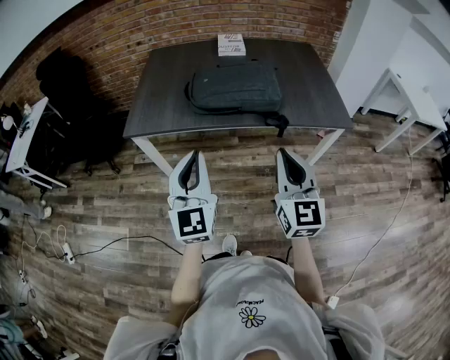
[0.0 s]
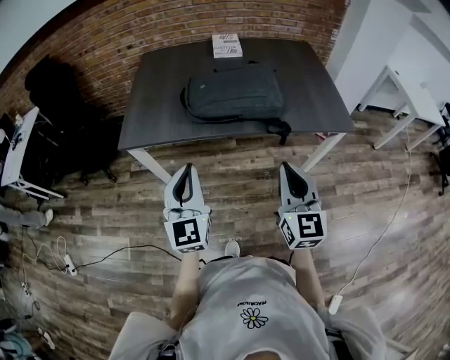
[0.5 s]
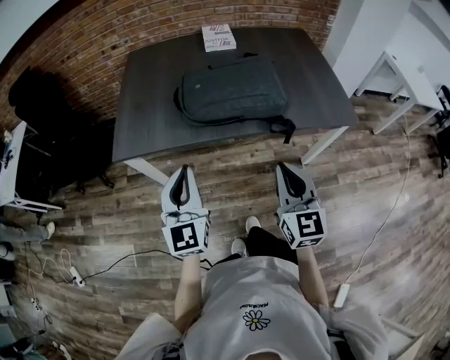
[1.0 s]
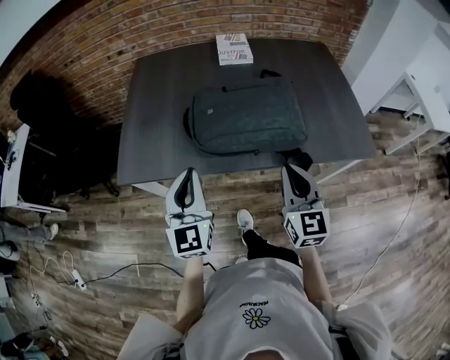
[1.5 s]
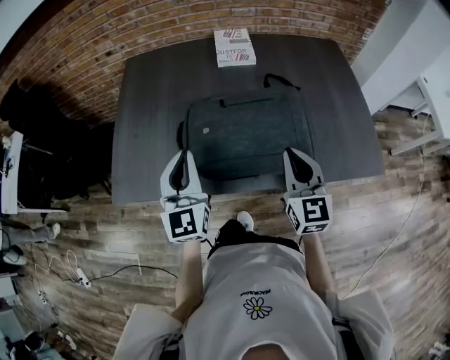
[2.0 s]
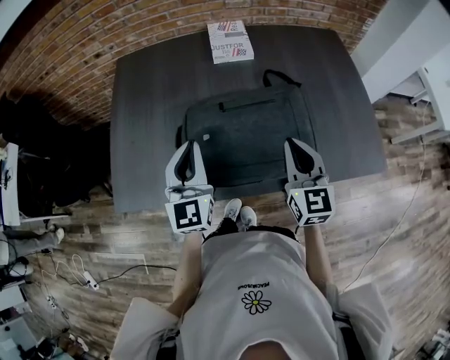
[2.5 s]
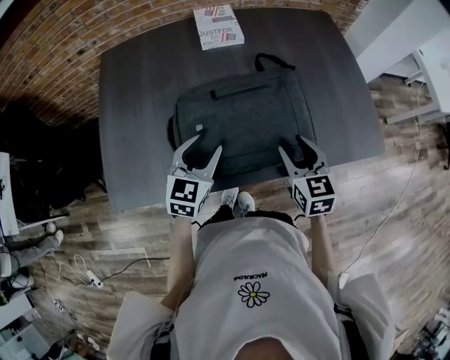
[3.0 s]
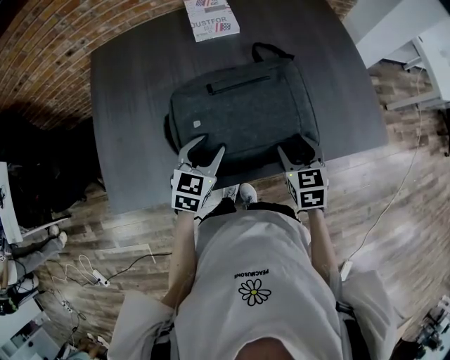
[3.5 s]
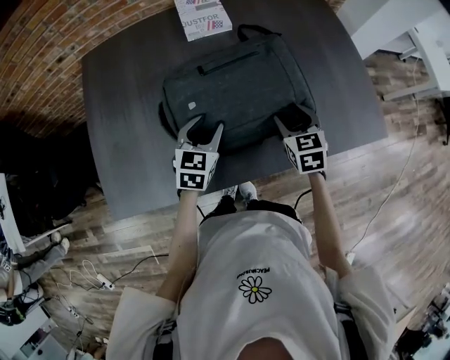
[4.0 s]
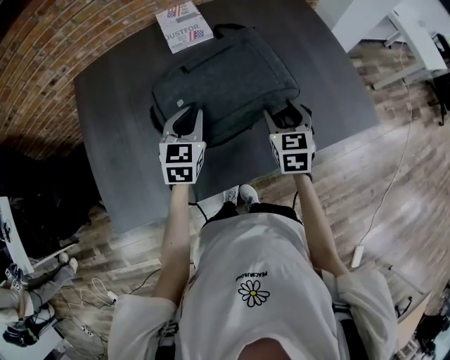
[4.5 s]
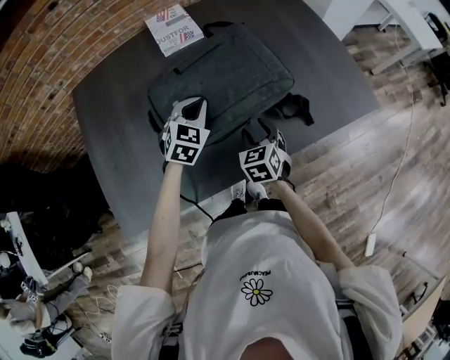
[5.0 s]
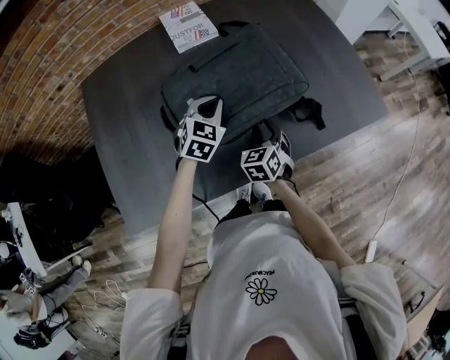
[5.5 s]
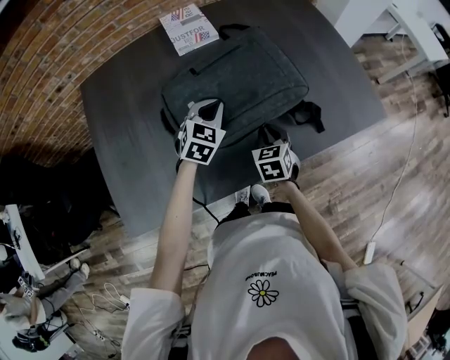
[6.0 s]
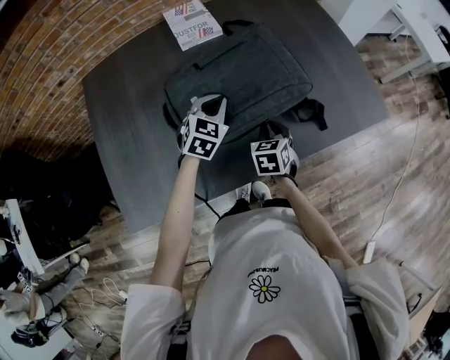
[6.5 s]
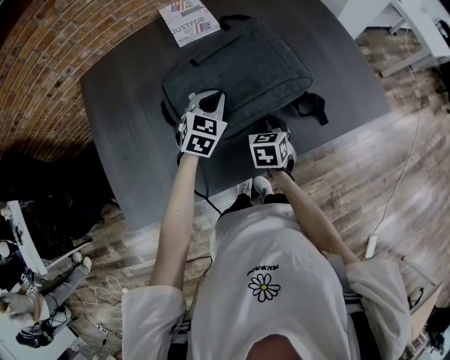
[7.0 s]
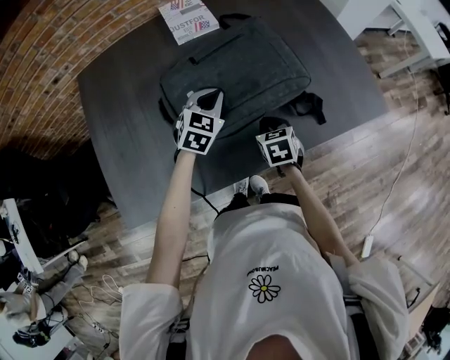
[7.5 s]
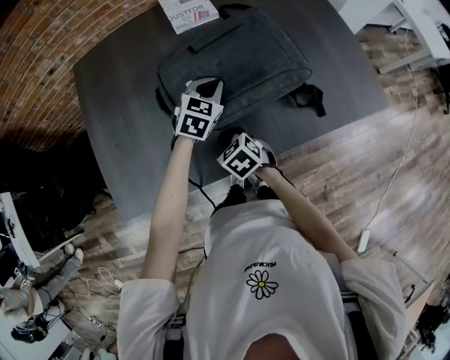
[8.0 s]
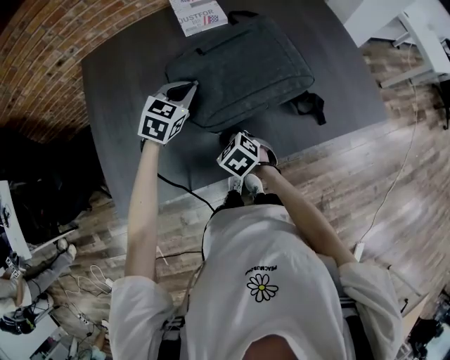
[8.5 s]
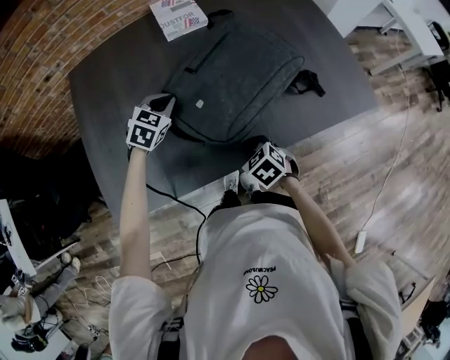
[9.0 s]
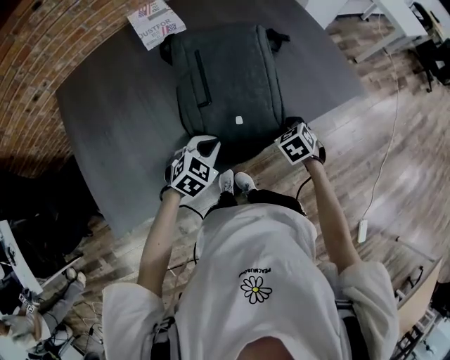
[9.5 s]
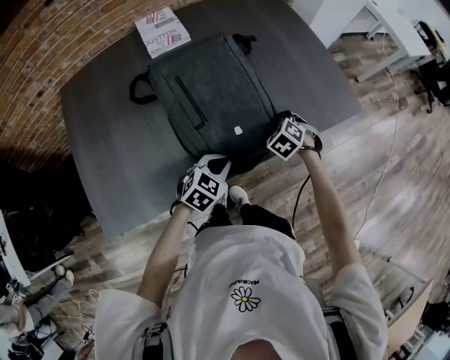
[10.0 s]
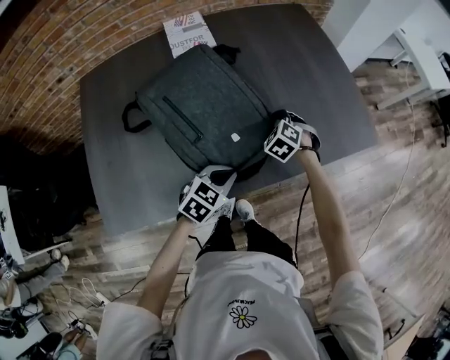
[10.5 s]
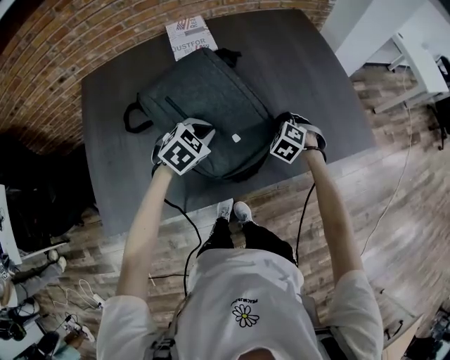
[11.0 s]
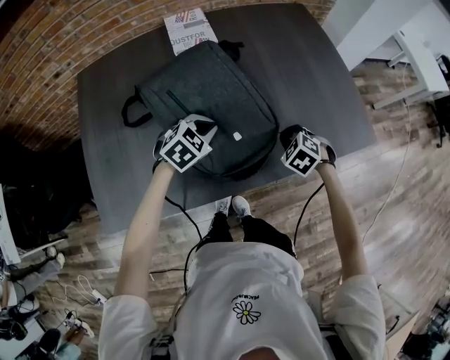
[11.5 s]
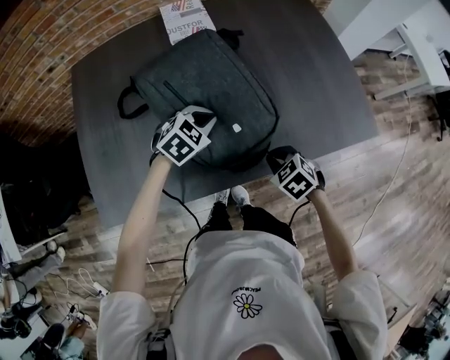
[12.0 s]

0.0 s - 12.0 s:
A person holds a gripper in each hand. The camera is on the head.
0.0 s - 2.0 s: The two grippers go approximately 35 cm forward.
2.0 s - 4.0 s: Both grippers move downward and forward, about 20 cm. The left gripper tilts its fingers about 30 degrees downward, and opens its fingers. Meanwhile the right gripper rotates roughly 30 degrees, and opens up.
4.0 s - 6.0 s: The left gripper goes roughly 5 cm forward, changes its angle by some 20 degrees, and closes. Meanwhile the right gripper moves downward and backward, some 10 cm, and closes.
6.0 s - 8.0 s: The right gripper is displaced to the left and backward by approximately 15 cm, and rotates some 30 degrees.
8.0 s - 10.0 s: The right gripper moves approximately 30 cm, and changes its angle by approximately 30 degrees. The left gripper ends up approximately 20 cm from where it was, and swivels roughly 20 degrees.
10.0 s - 12.0 s: The right gripper ends up some 10 cm from where it was, and swivels roughly 20 degrees. The left gripper ends up approximately 15 cm from where it was.

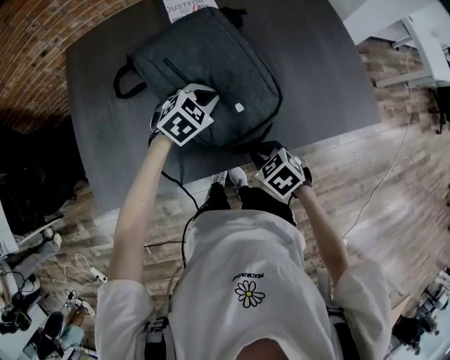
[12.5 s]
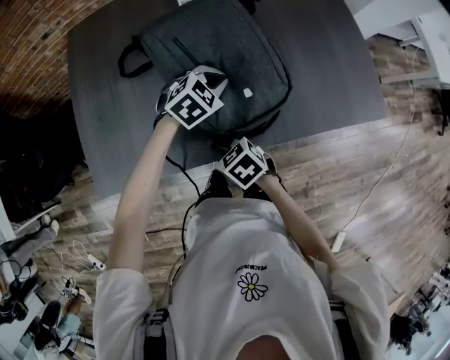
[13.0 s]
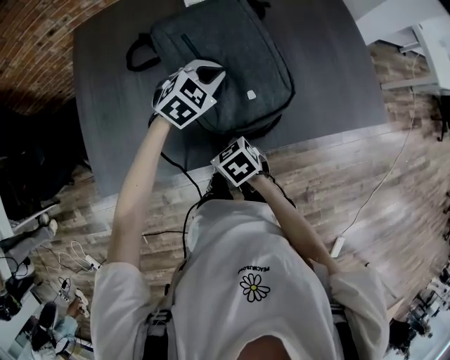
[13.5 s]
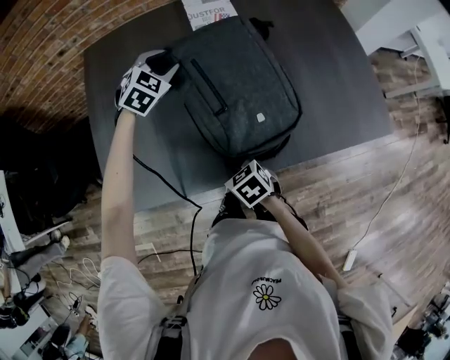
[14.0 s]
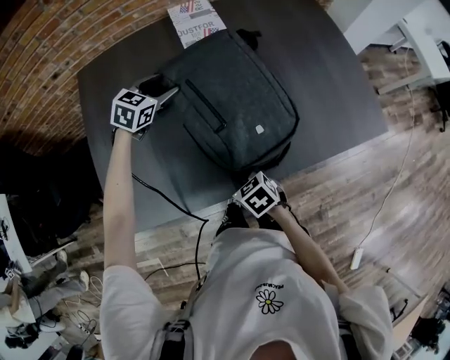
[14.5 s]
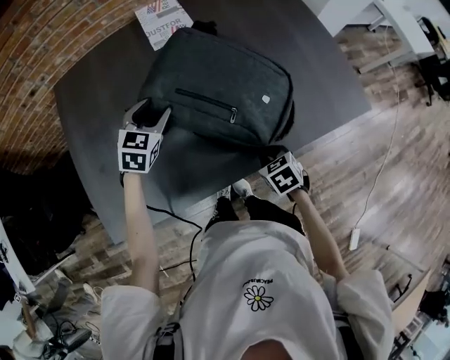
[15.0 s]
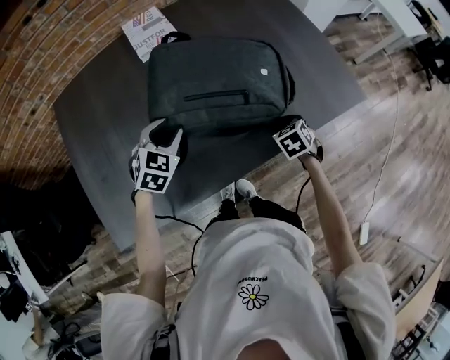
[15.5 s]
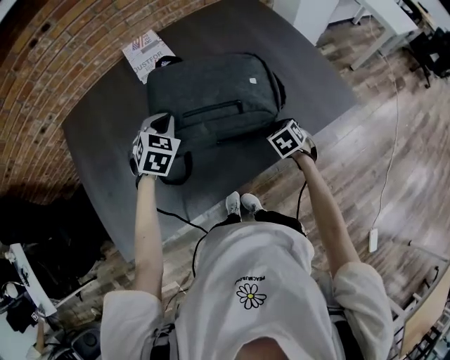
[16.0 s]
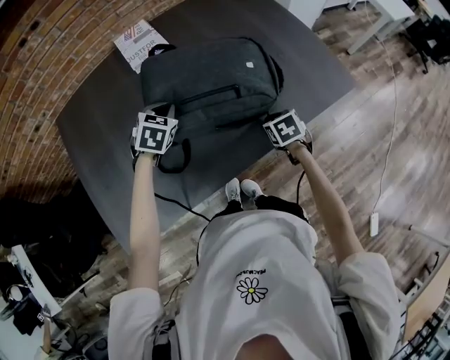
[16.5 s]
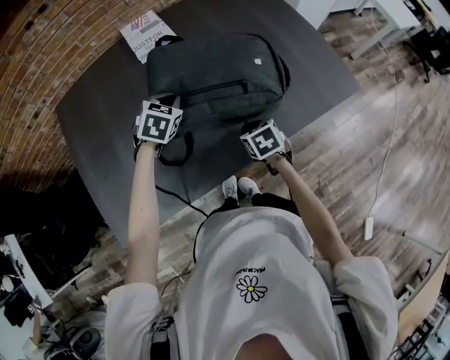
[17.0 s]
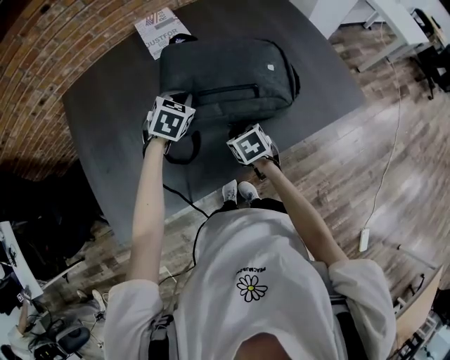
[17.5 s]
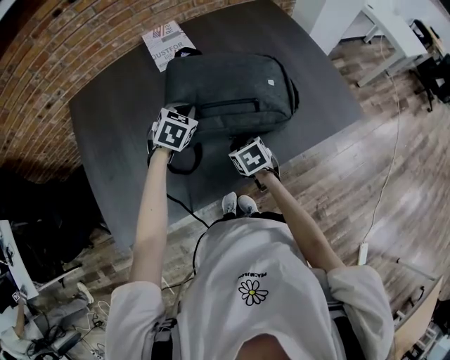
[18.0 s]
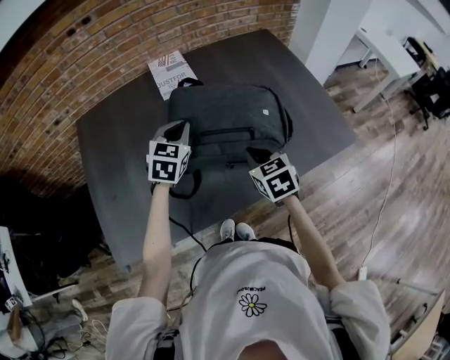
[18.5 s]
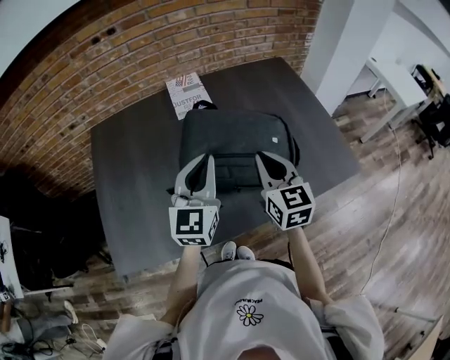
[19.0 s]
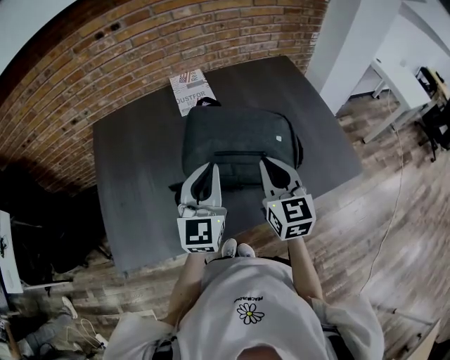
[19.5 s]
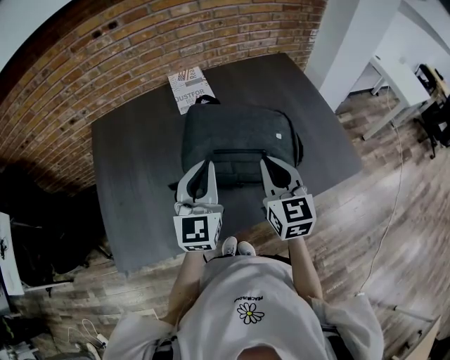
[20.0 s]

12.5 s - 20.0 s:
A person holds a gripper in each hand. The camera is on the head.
12.5 s - 14.5 s: The left gripper moves forward and to the left, roughly 25 cm, and opens its fingers; the right gripper travels to the left by some 10 cm.
14.5 s - 16.5 s: The right gripper ends up about 25 cm from where it was, and turns by about 30 degrees; the left gripper shifts by approximately 15 cm, and closes up.
16.5 s - 18.0 s: The right gripper heads to the left, covering approximately 15 cm.
18.0 s - 20.0 s: The right gripper travels upward by about 25 cm, and angles its fingers upward, by some 40 degrees. Meanwhile the left gripper moves upward and backward, about 20 cm, and points its fingers about 50 degrees further upward.

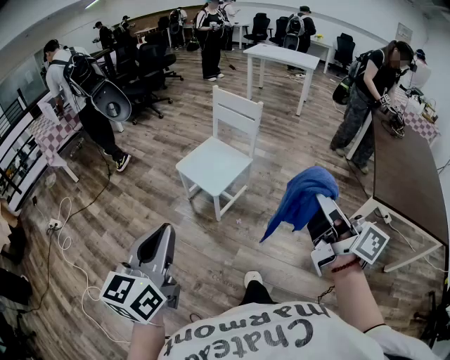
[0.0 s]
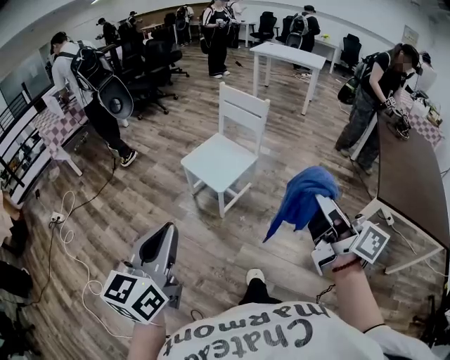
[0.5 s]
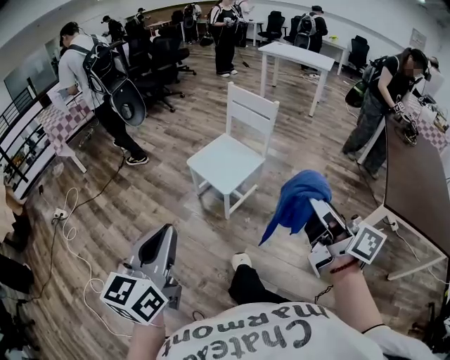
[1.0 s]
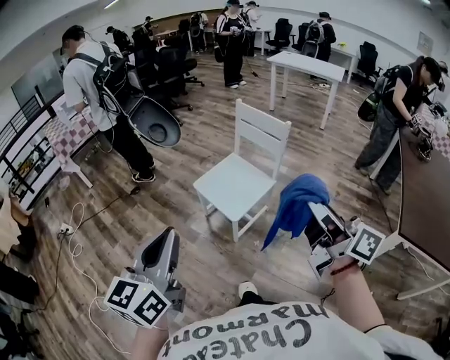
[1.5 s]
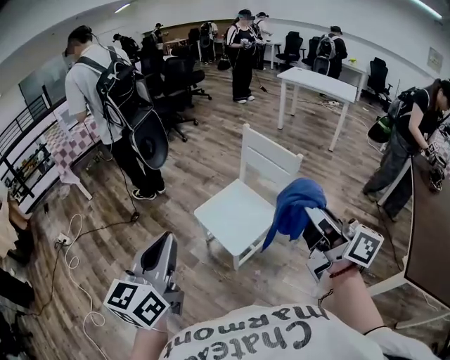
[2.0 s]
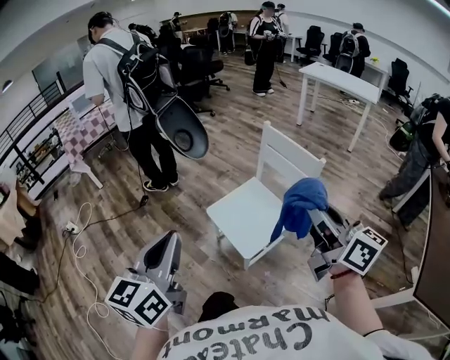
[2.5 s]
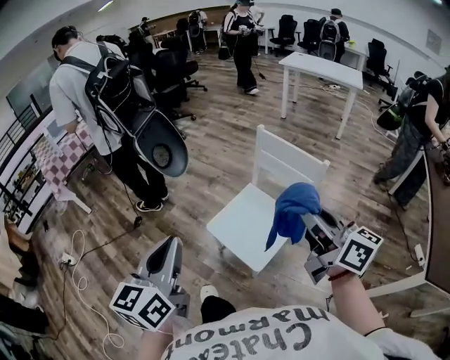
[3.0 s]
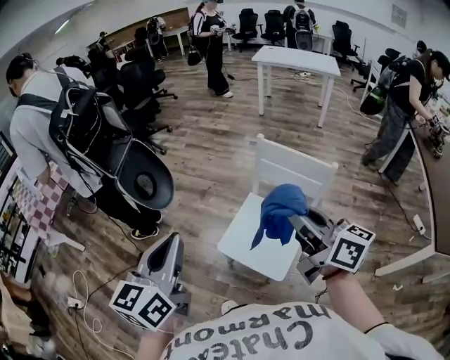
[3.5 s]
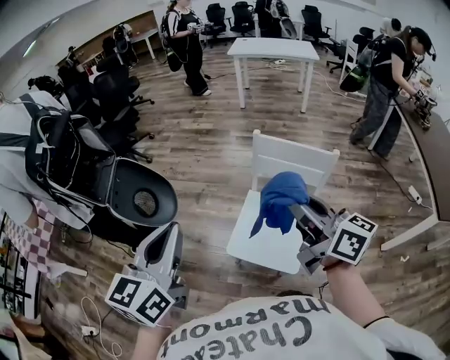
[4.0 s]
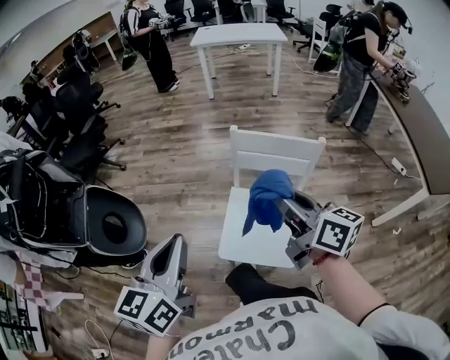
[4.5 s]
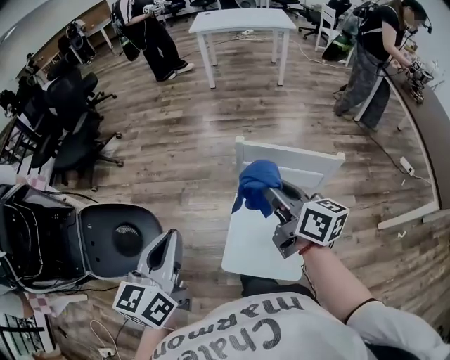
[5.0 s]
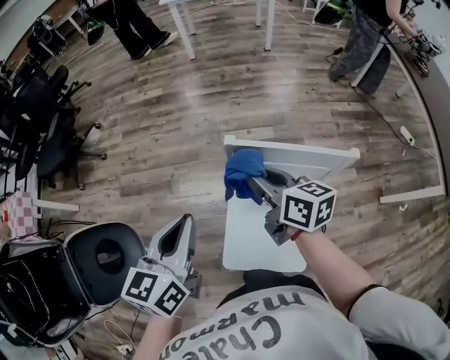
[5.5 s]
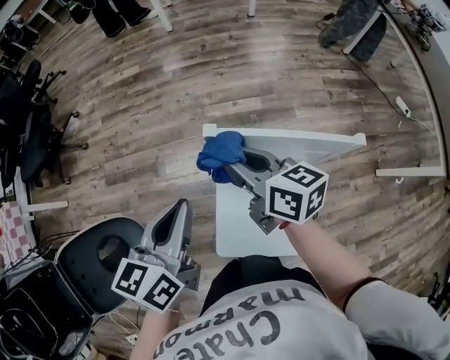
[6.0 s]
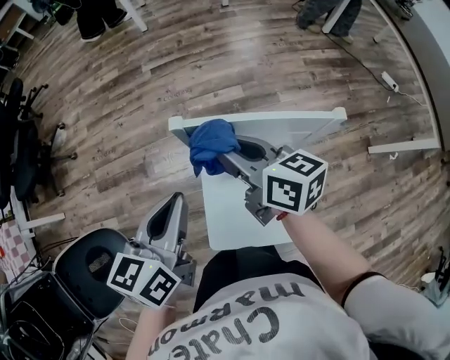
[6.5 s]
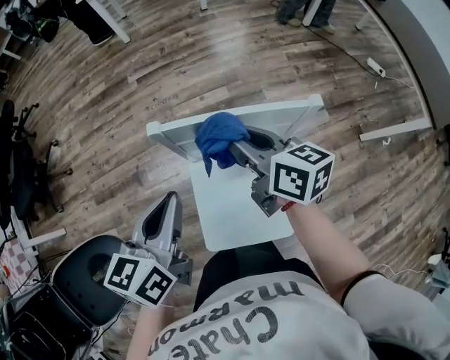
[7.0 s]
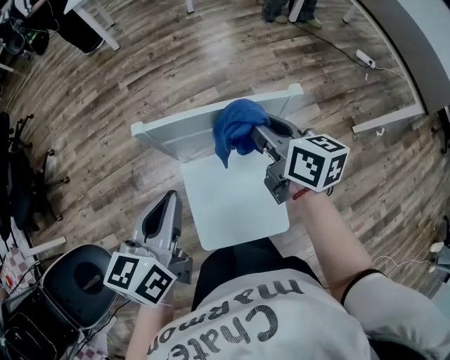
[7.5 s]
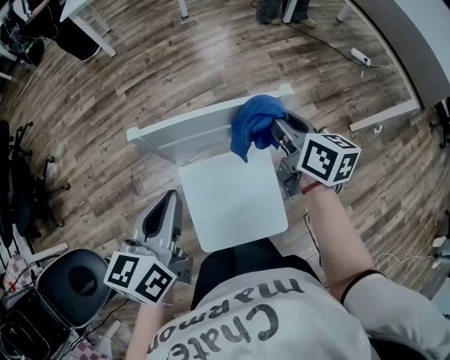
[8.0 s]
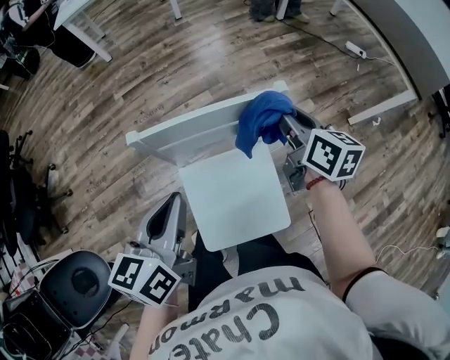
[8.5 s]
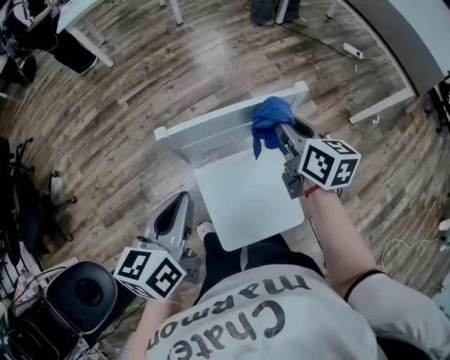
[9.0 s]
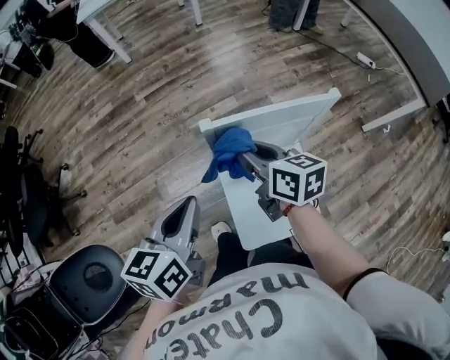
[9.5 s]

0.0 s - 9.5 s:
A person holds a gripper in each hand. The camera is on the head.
0.0 s - 2.0 s: Both grippers move forward, some 30 cm.
2.0 s - 4.0 s: The left gripper changes place by some 40 cm, and swivels about 30 degrees; the right gripper changes place by some 35 cm, and changes its angle by some 30 degrees.
4.0 s - 5.5 s: Both grippers move forward and downward, roughly 35 cm. The left gripper changes its angle by about 20 degrees; the right gripper rotates roughly 30 degrees.
5.5 s - 7.5 s: Both grippers travel together to the right, roughly 15 cm. The right gripper swivels some 20 degrees.
7.5 s - 9.5 s: The two grippers go approximately 15 cm to the left.
